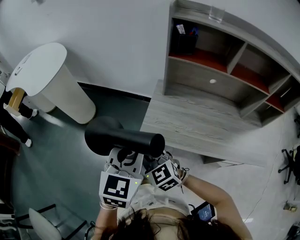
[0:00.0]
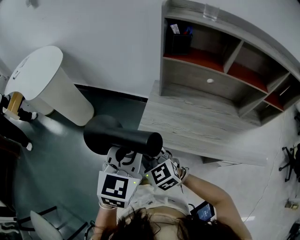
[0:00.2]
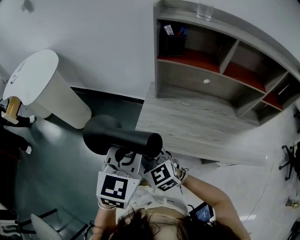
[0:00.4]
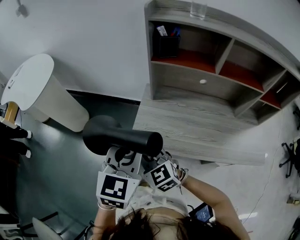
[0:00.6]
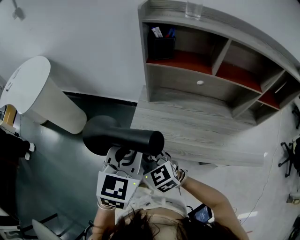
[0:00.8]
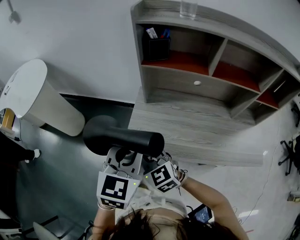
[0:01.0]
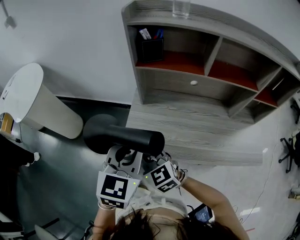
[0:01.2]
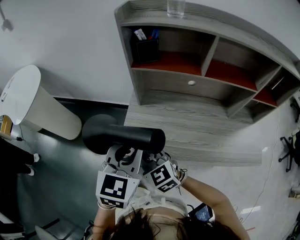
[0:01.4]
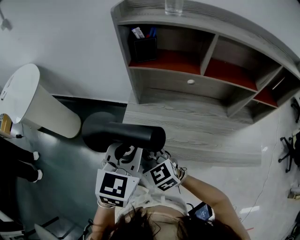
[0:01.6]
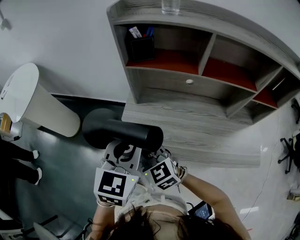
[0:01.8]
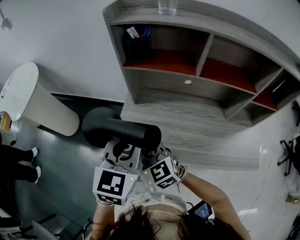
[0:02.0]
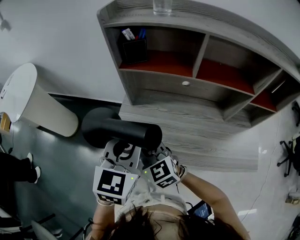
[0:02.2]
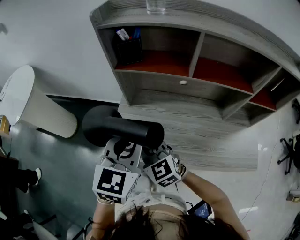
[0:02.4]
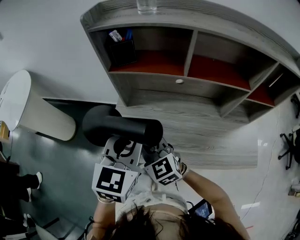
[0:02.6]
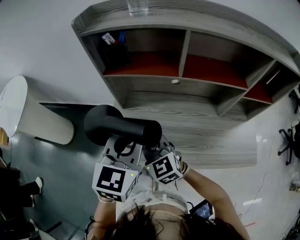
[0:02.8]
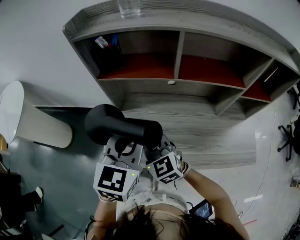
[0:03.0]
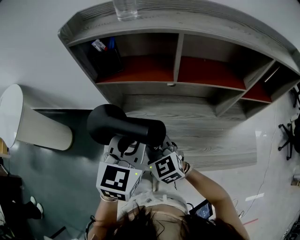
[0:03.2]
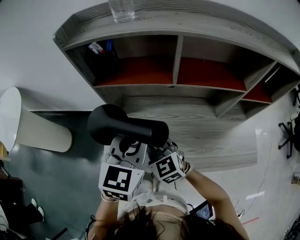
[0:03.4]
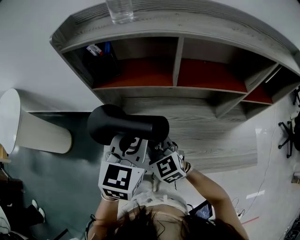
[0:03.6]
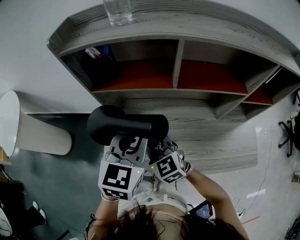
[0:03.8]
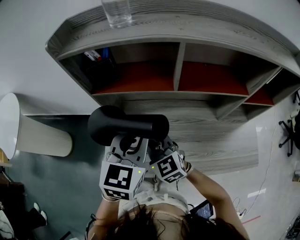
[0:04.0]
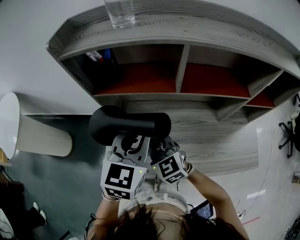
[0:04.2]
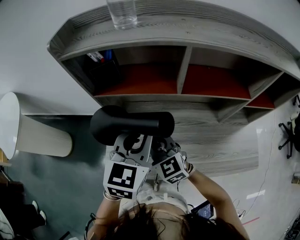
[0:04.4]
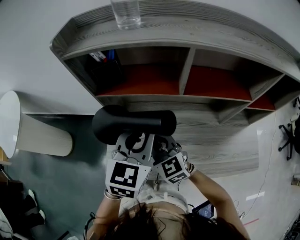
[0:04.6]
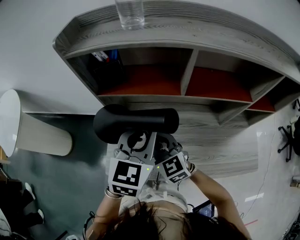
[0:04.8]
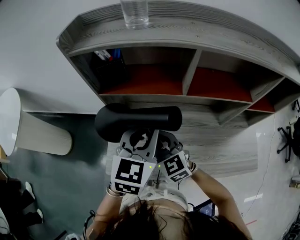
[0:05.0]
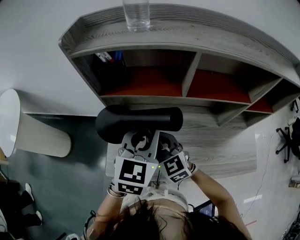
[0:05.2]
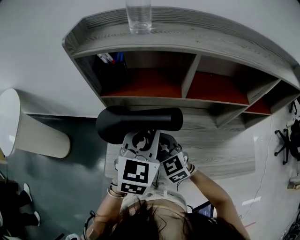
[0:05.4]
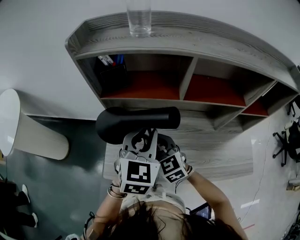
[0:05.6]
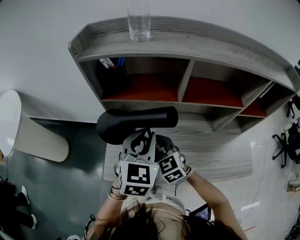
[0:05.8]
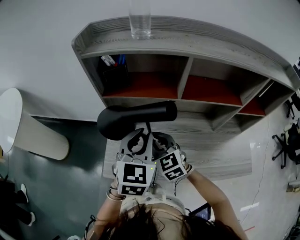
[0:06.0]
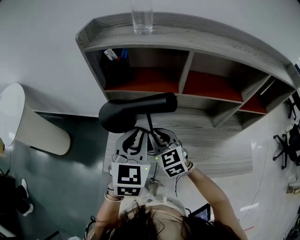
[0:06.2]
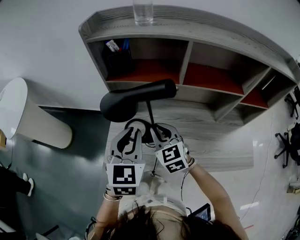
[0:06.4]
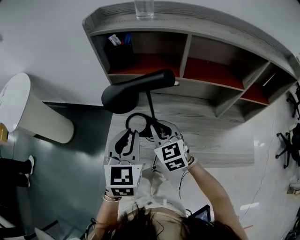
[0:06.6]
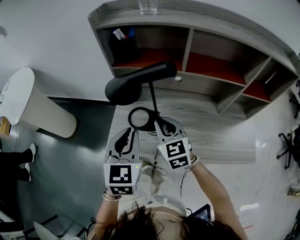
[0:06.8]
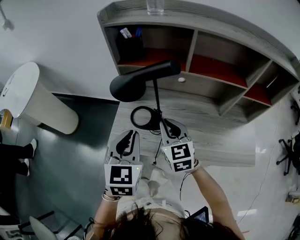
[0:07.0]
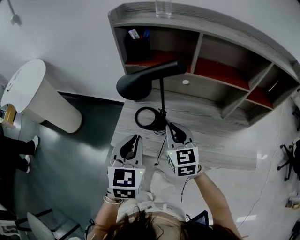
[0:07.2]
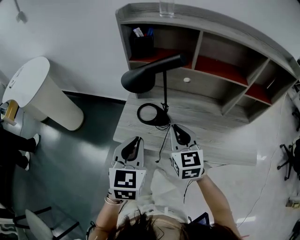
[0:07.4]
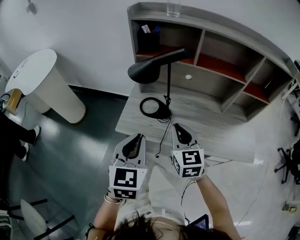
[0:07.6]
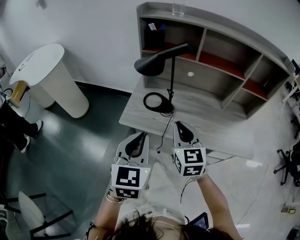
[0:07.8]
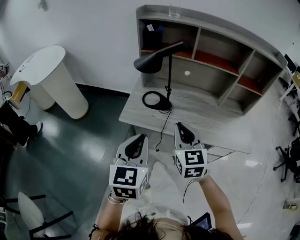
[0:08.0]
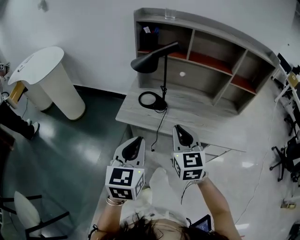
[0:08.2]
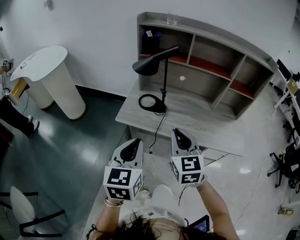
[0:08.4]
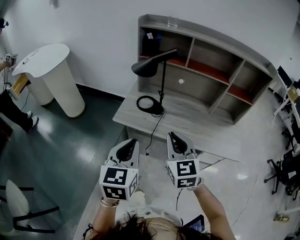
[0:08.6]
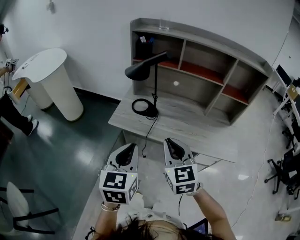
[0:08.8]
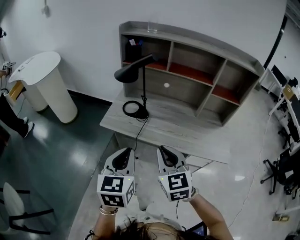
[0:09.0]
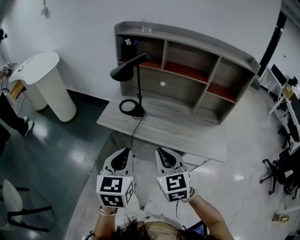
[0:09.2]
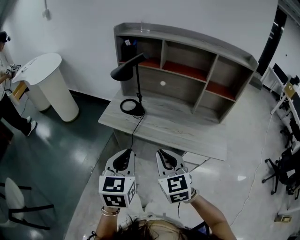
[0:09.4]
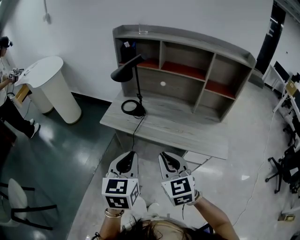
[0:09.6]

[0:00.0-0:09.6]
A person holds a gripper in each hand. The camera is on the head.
0:00.0 to 0:01.6: The two grippers go some 15 cm to the right and forward.
0:01.6 to 0:03.2: Both grippers travel together to the right and forward, roughly 15 cm.
0:03.2 to 0:04.8: The grippers both shift forward by approximately 5 cm.
0:04.8 to 0:06.4: The left gripper travels backward and to the left by some 10 cm.
0:06.4 to 0:08.0: Both grippers move backward, about 30 cm.
0:08.0 to 0:09.6: The right gripper shifts some 20 cm backward and to the right; the left gripper moves to the right and backward, some 20 cm.

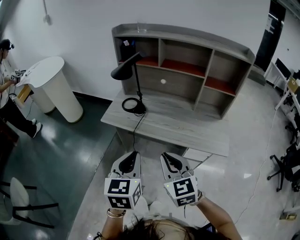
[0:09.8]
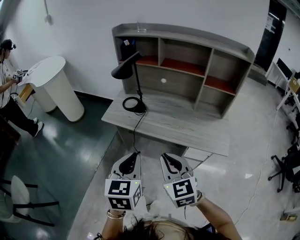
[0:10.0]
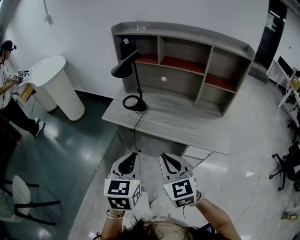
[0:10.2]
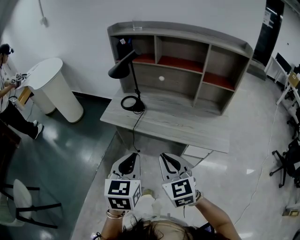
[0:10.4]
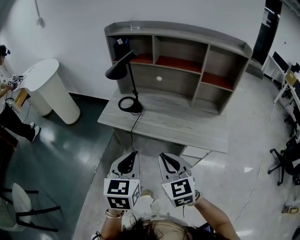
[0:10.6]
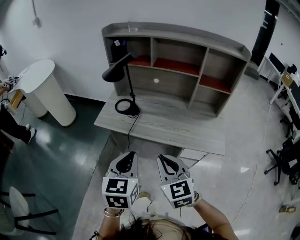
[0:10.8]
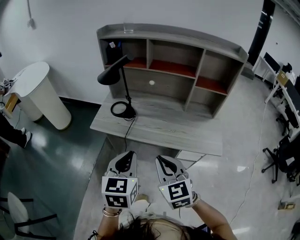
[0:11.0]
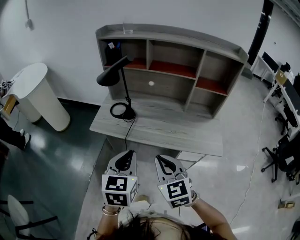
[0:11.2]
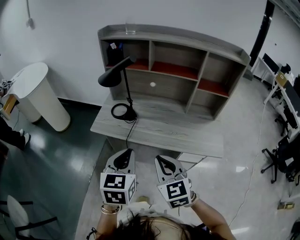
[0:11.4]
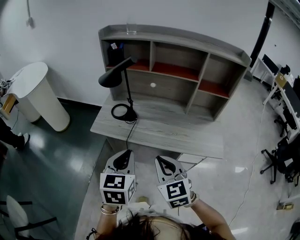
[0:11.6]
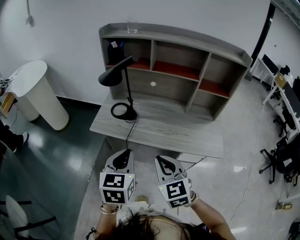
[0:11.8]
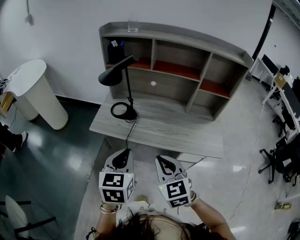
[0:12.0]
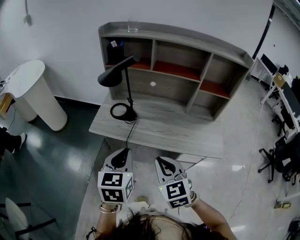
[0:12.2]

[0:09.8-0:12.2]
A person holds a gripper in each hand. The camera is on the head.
0:09.8 to 0:11.0: The grippers move only a little.
0:11.0 to 0:12.2: The right gripper changes place by about 5 cm, while the left gripper is displaced forward by roughly 5 cm.

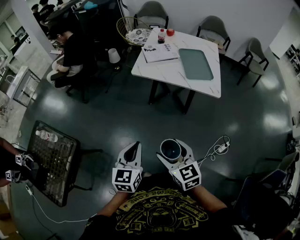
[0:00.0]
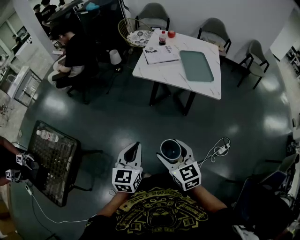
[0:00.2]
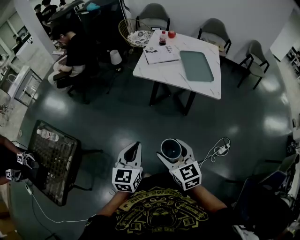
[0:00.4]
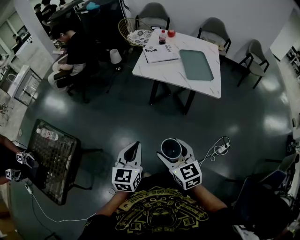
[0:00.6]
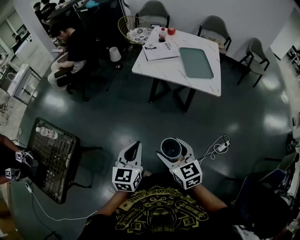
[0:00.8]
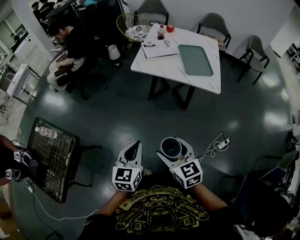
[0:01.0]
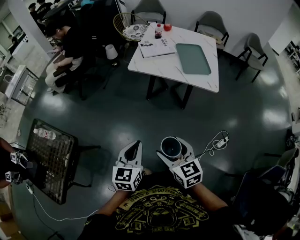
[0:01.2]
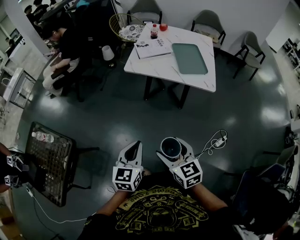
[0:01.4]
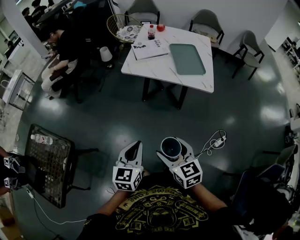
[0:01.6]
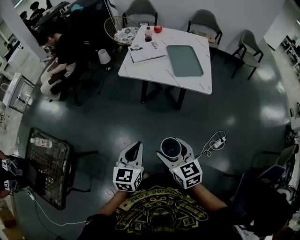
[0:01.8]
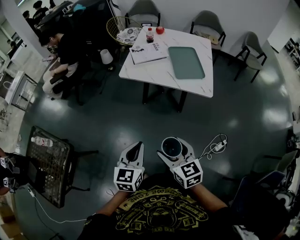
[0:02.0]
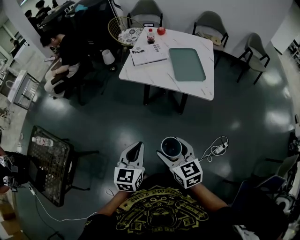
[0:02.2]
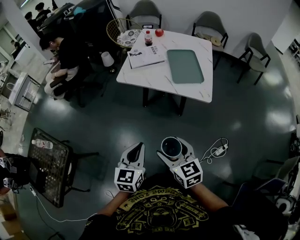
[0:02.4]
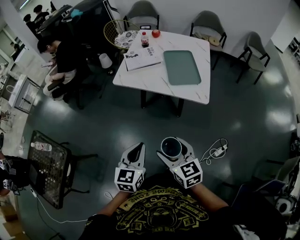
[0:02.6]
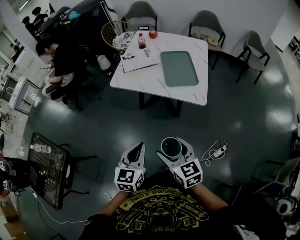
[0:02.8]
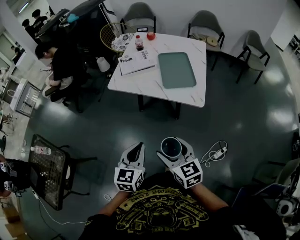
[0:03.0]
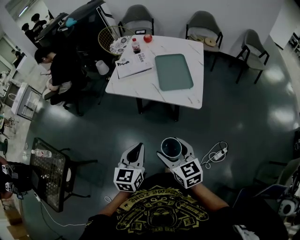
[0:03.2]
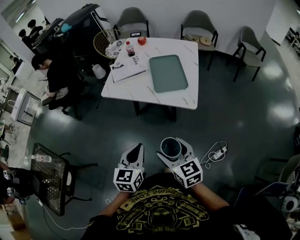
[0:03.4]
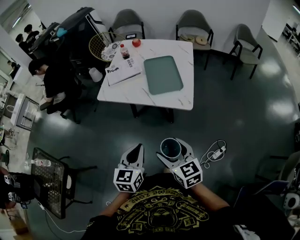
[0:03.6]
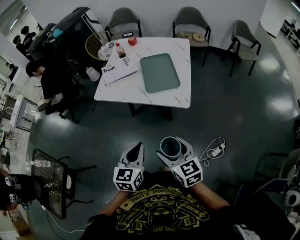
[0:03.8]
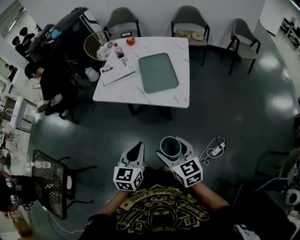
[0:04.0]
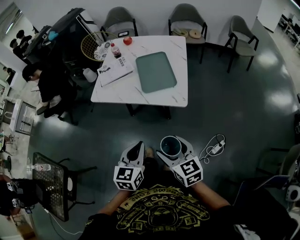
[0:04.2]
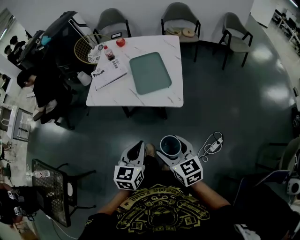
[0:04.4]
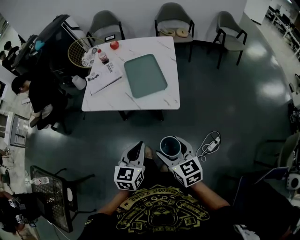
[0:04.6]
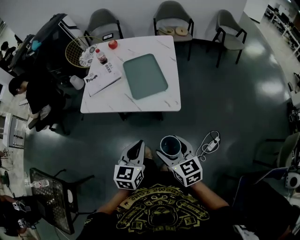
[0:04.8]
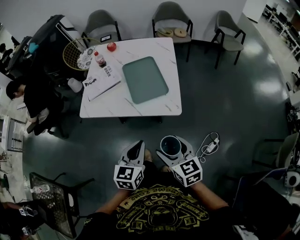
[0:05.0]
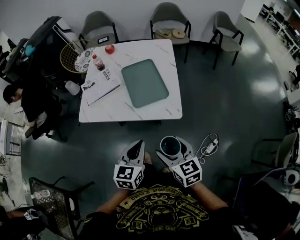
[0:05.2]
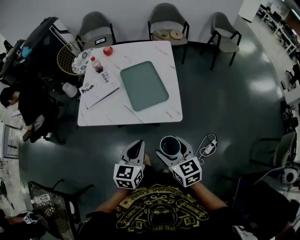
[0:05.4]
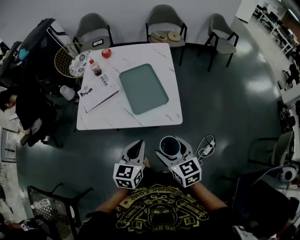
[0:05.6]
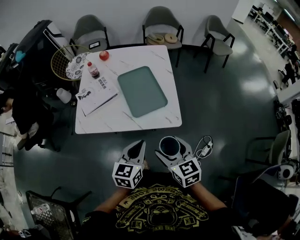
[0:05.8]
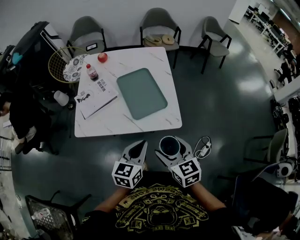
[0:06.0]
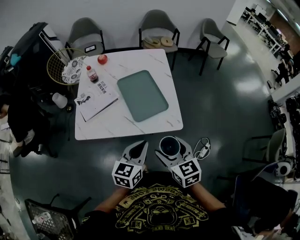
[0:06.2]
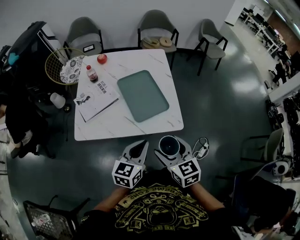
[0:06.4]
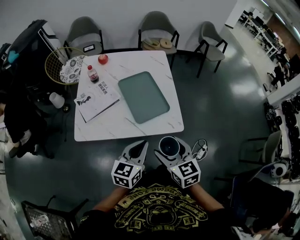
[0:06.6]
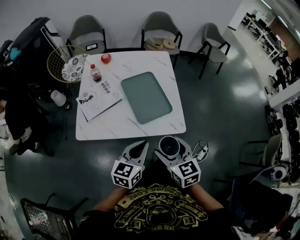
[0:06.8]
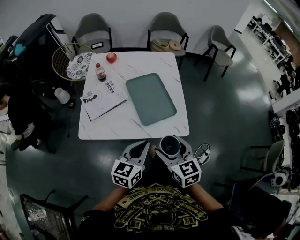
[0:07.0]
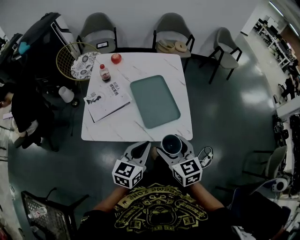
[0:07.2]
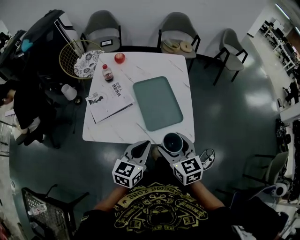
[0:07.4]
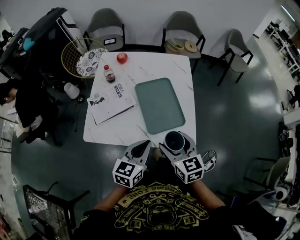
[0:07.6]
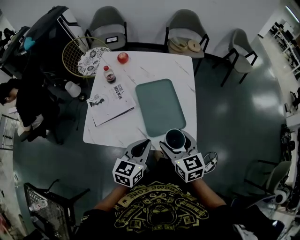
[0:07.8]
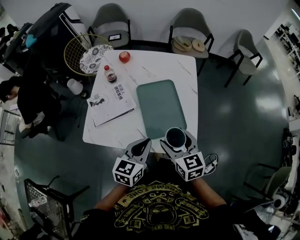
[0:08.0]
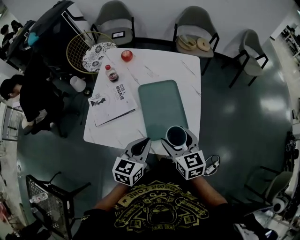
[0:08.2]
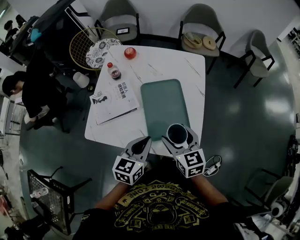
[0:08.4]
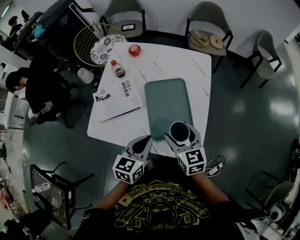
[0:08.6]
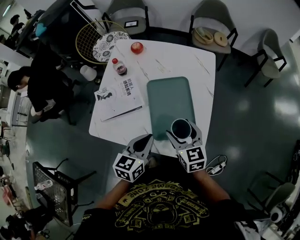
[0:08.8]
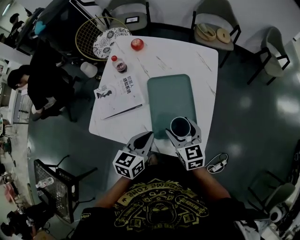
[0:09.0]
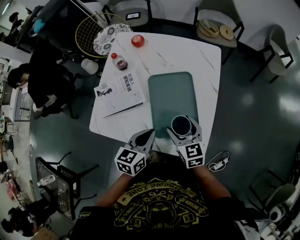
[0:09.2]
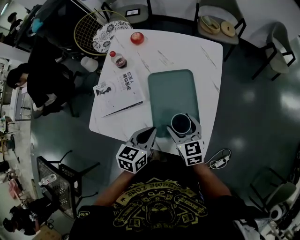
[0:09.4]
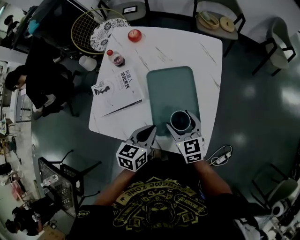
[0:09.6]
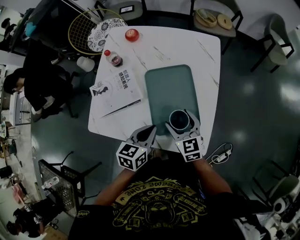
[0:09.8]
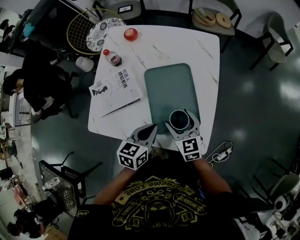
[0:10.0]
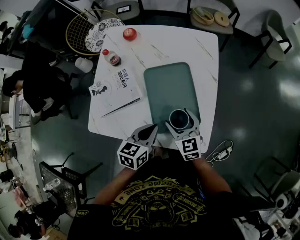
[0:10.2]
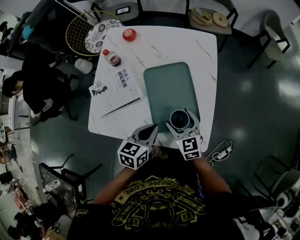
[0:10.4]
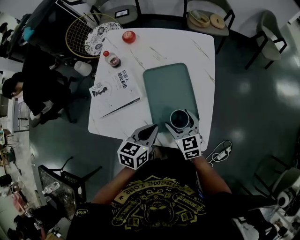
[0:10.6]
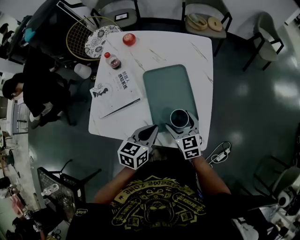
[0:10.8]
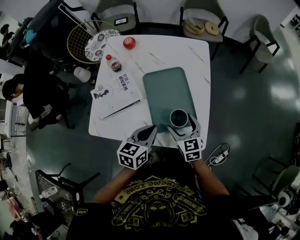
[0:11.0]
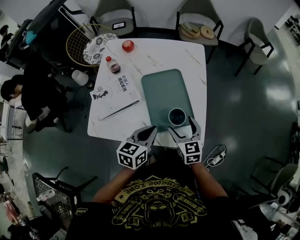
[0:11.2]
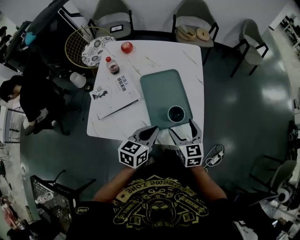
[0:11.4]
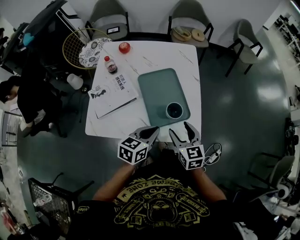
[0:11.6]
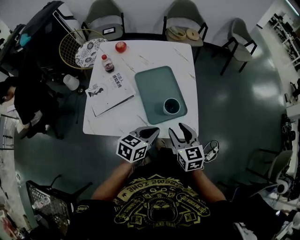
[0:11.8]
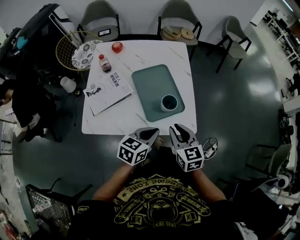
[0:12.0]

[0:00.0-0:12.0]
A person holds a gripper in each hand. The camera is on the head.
0:00.0 to 0:01.6: The left gripper is displaced to the right by about 5 cm.
0:01.6 to 0:03.0: Both grippers travel together to the right and forward, approximately 15 cm.
0:03.0 to 0:04.4: The two grippers go roughly 10 cm to the right.
0:04.4 to 0:06.0: The grippers both shift forward by approximately 15 cm. The left gripper rotates some 20 degrees.
0:06.0 to 0:07.6: The grippers both shift forward and to the left by roughly 10 cm.
0:07.6 to 0:09.0: The right gripper heads forward and downward, covering approximately 15 cm. Meanwhile the left gripper is displaced forward by some 10 cm.
0:09.0 to 0:10.4: The right gripper goes roughly 5 cm downward.
0:10.4 to 0:12.0: The left gripper heads backward, covering about 10 cm, and turns by some 20 degrees. Meanwhile the right gripper heads backward and upward, covering about 15 cm, and closes up.
